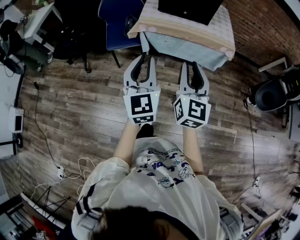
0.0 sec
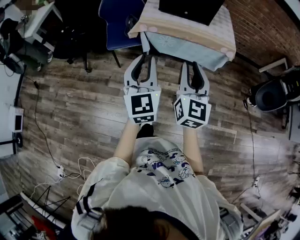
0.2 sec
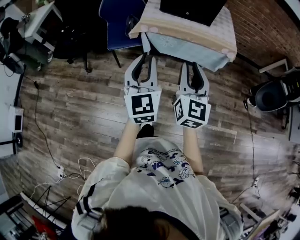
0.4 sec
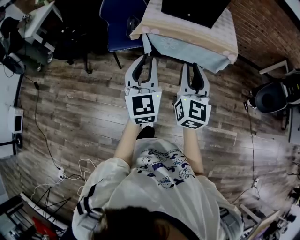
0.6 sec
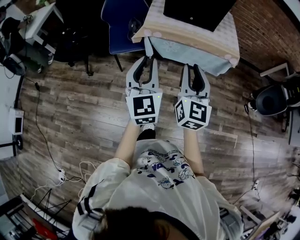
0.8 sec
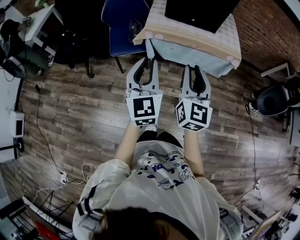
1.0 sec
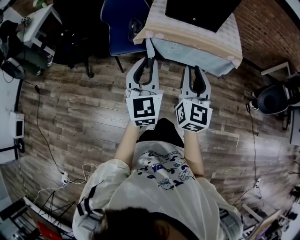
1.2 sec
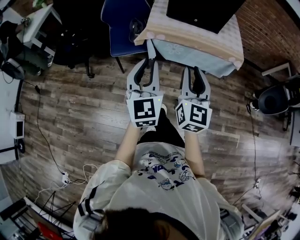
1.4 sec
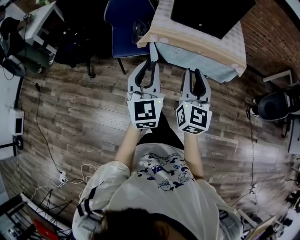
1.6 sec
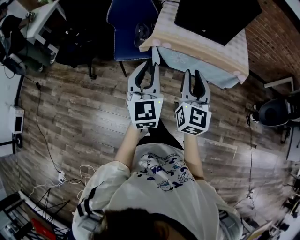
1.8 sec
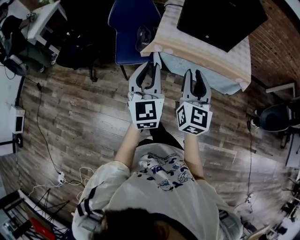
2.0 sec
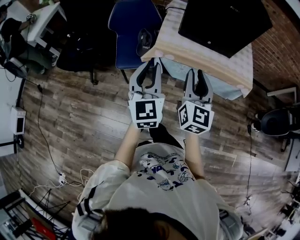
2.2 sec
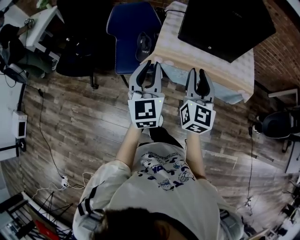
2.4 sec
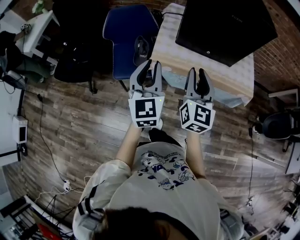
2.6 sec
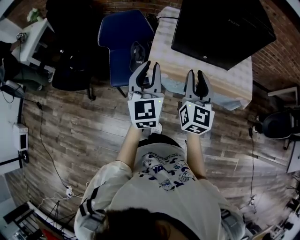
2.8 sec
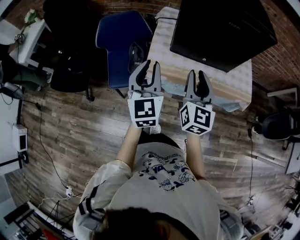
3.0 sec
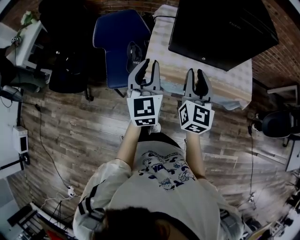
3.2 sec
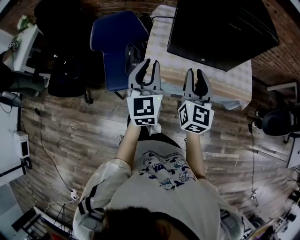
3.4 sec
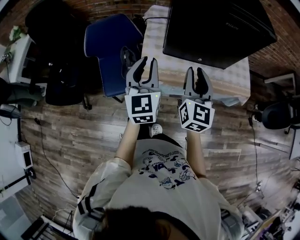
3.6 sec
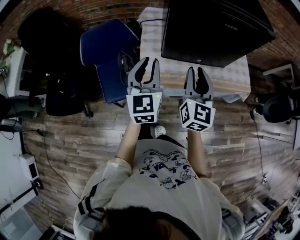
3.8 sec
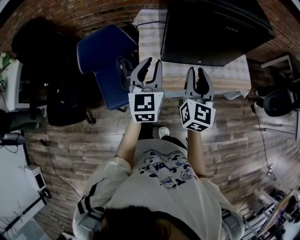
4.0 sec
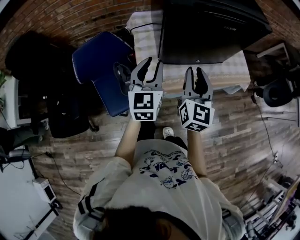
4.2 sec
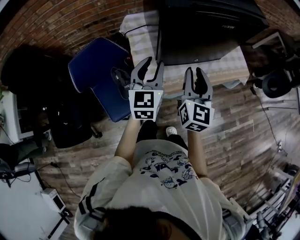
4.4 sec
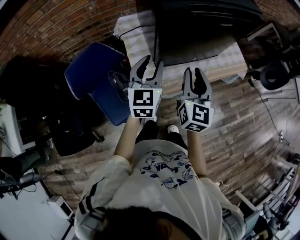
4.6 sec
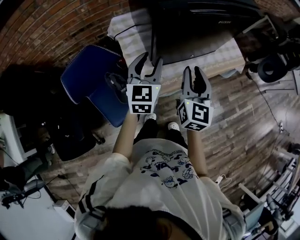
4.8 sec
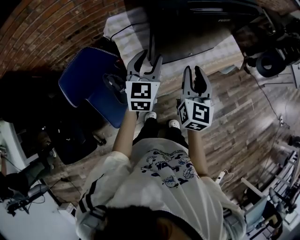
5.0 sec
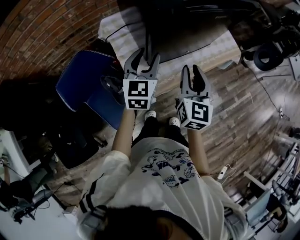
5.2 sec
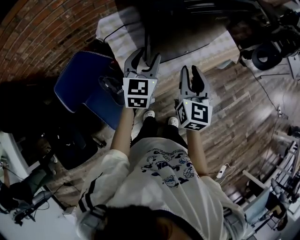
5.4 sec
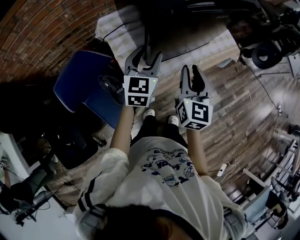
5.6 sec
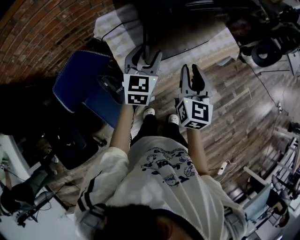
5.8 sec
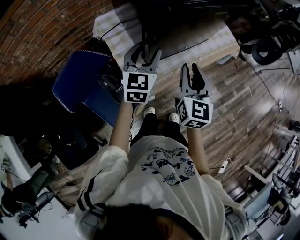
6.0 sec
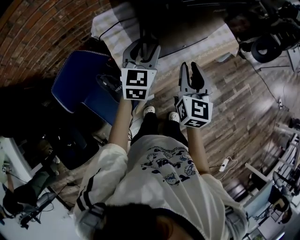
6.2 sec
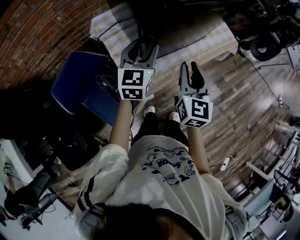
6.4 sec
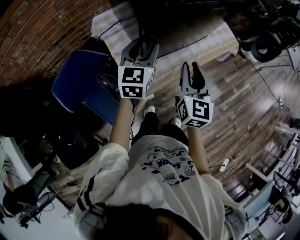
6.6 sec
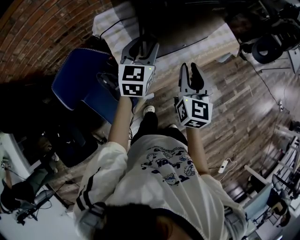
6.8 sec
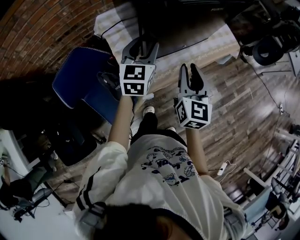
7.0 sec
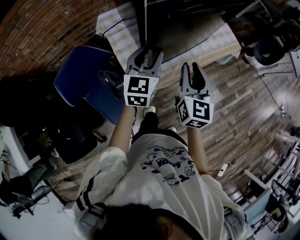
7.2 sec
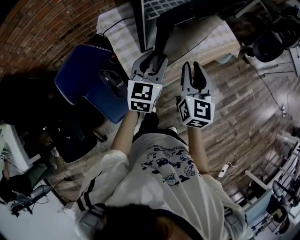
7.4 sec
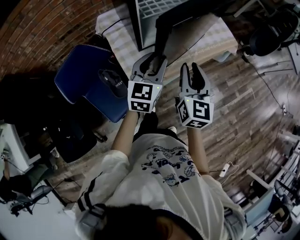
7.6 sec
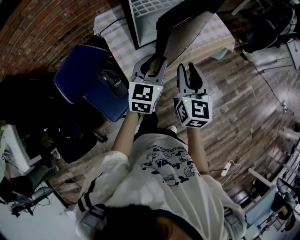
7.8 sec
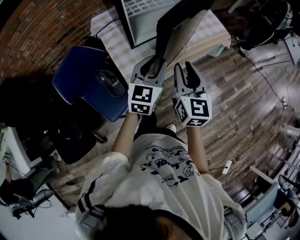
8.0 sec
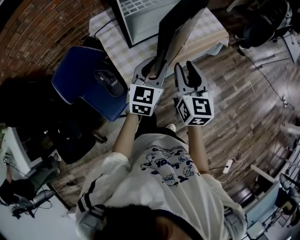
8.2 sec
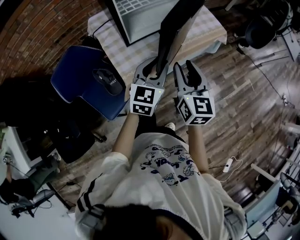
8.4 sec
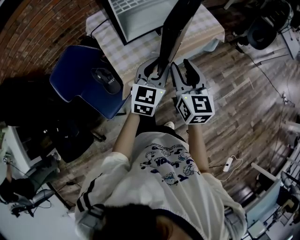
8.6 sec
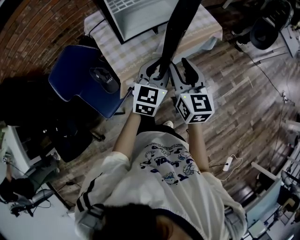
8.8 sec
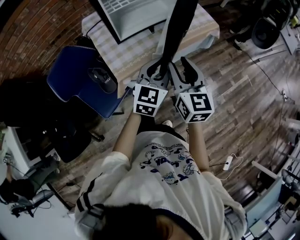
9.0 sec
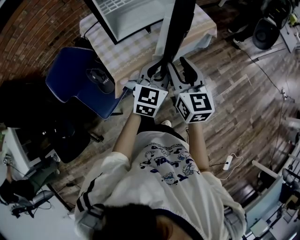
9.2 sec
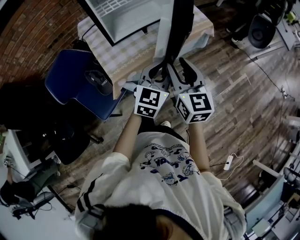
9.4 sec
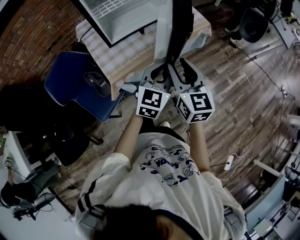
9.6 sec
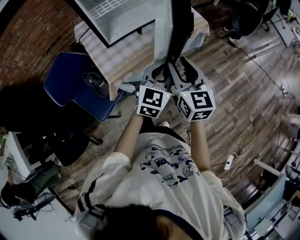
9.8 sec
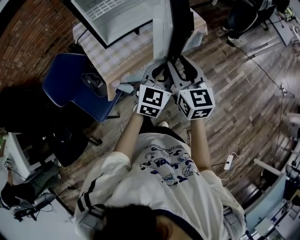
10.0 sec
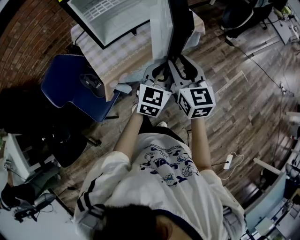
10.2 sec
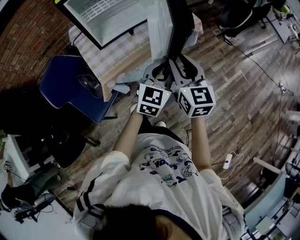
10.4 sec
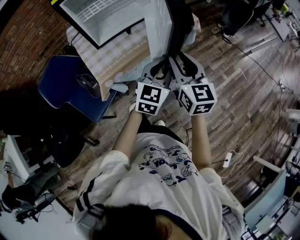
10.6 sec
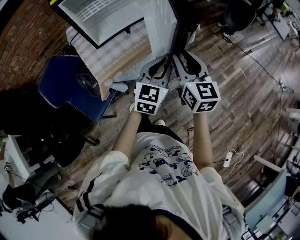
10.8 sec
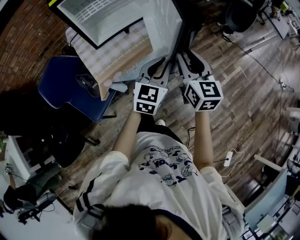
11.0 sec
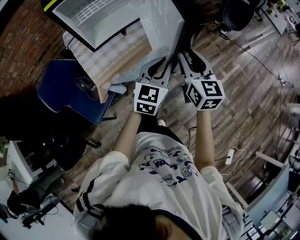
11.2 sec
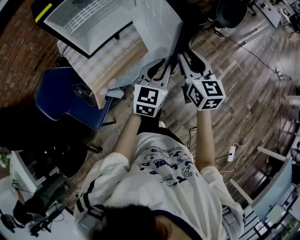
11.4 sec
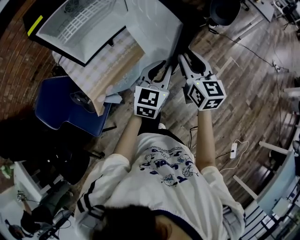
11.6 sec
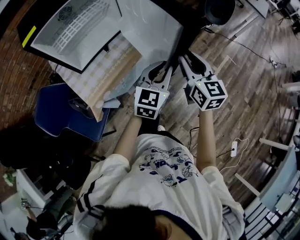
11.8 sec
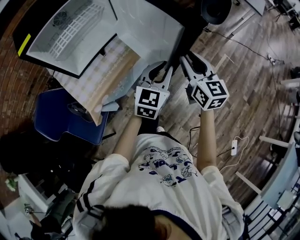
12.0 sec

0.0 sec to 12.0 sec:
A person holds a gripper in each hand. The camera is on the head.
0.0 sec to 1.6 sec: The two grippers go approximately 15 cm forward and to the left.
1.6 sec to 3.0 sec: The two grippers go roughly 30 cm forward.
3.0 sec to 4.4 sec: The left gripper ends up some 20 cm from where it was, and turns by some 30 degrees. The right gripper shifts by roughly 15 cm, and changes its angle by about 20 degrees.
4.4 sec to 6.0 sec: The left gripper moves forward, roughly 10 cm, and turns by roughly 20 degrees.
6.0 sec to 7.6 sec: The right gripper shifts by some 5 cm; the left gripper goes roughly 10 cm to the right and backward.
7.6 sec to 9.0 sec: The right gripper goes roughly 10 cm to the right and backward. The left gripper shifts some 20 cm to the right and backward.
9.0 sec to 10.4 sec: Both grippers travel together to the right, approximately 10 cm.
10.4 sec to 12.0 sec: Both grippers travel together to the right and forward, approximately 15 cm.

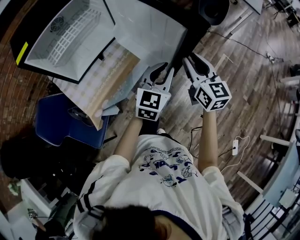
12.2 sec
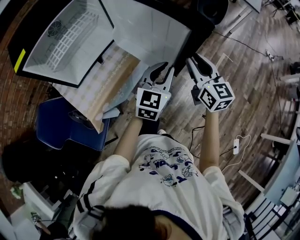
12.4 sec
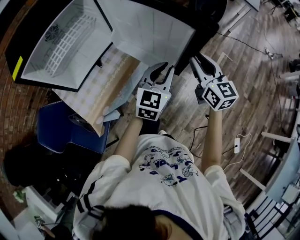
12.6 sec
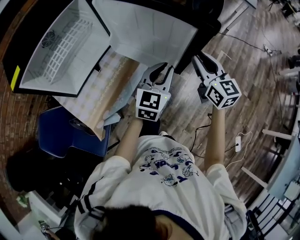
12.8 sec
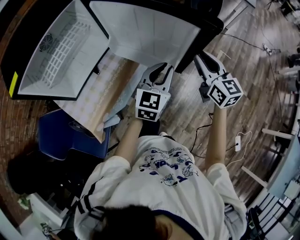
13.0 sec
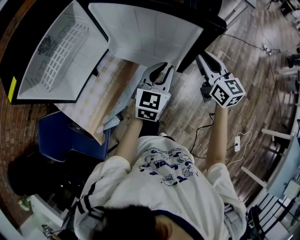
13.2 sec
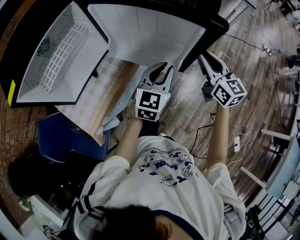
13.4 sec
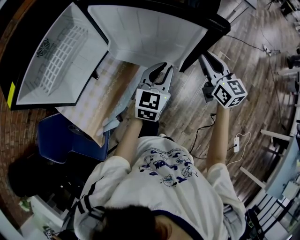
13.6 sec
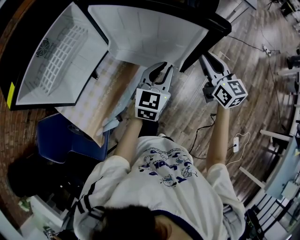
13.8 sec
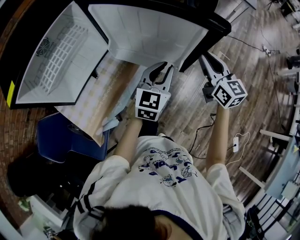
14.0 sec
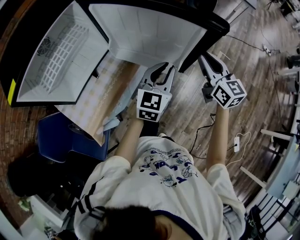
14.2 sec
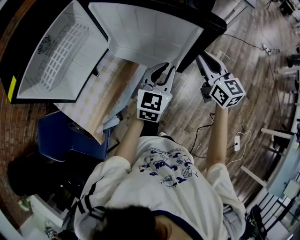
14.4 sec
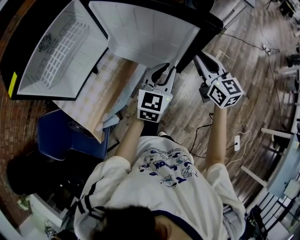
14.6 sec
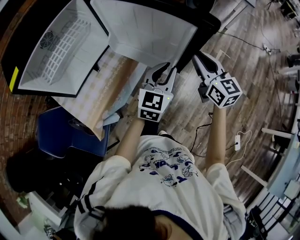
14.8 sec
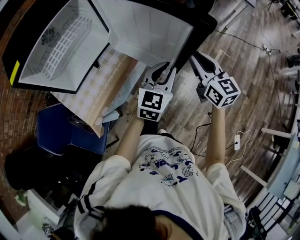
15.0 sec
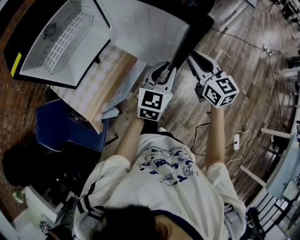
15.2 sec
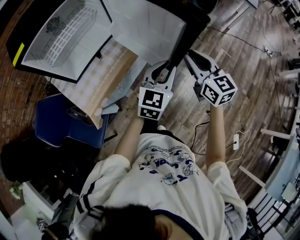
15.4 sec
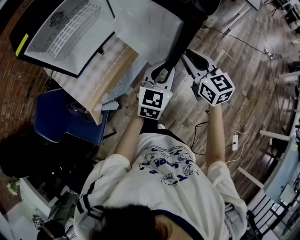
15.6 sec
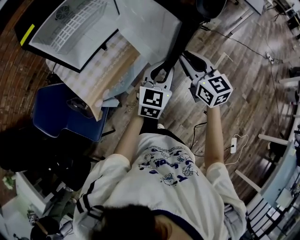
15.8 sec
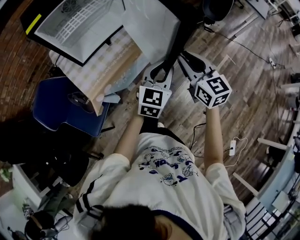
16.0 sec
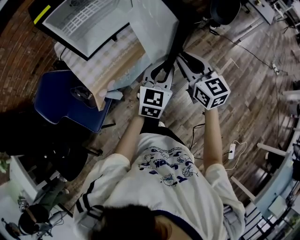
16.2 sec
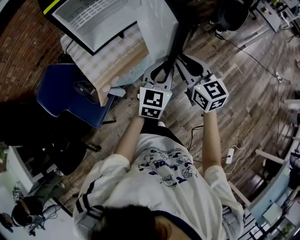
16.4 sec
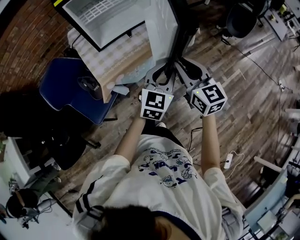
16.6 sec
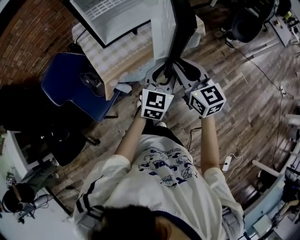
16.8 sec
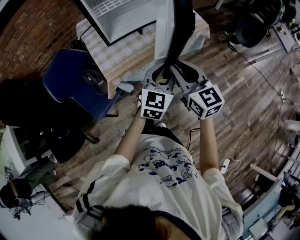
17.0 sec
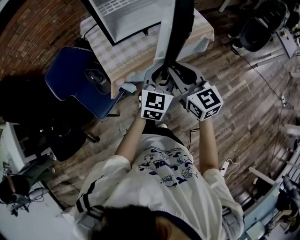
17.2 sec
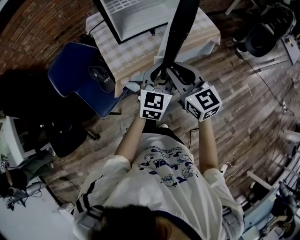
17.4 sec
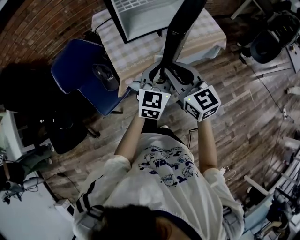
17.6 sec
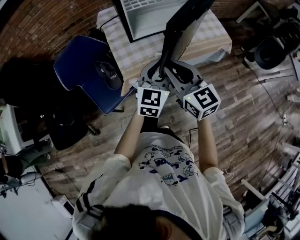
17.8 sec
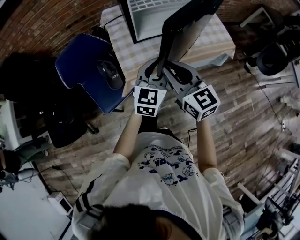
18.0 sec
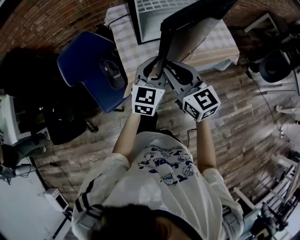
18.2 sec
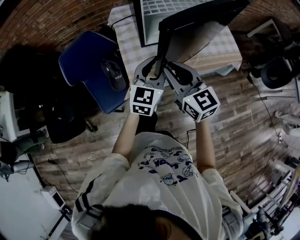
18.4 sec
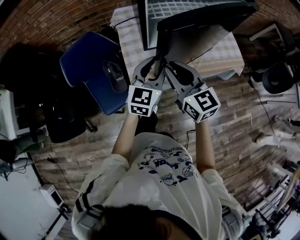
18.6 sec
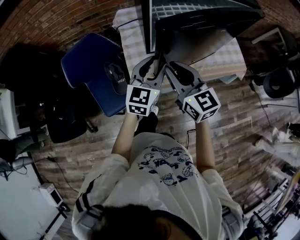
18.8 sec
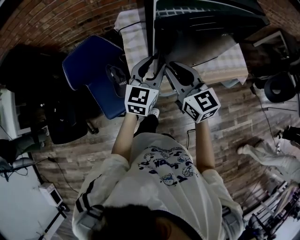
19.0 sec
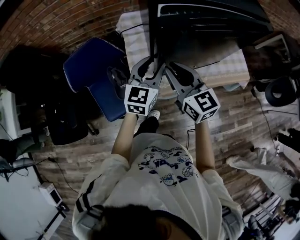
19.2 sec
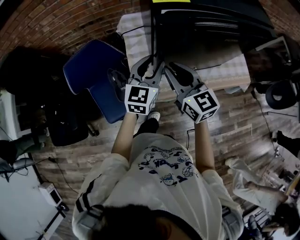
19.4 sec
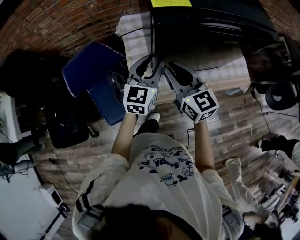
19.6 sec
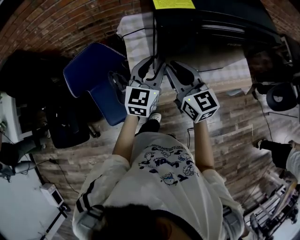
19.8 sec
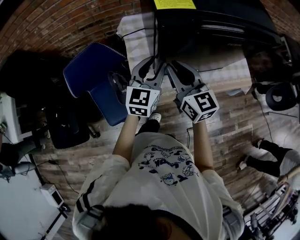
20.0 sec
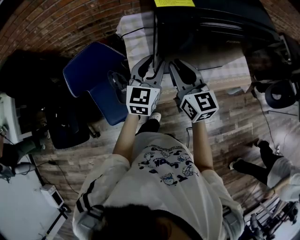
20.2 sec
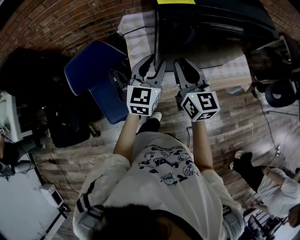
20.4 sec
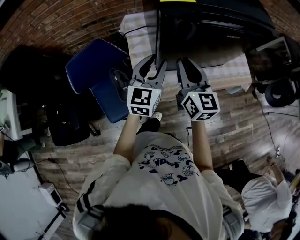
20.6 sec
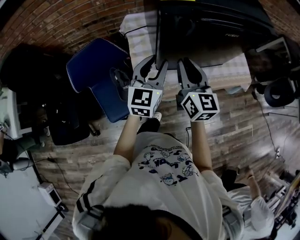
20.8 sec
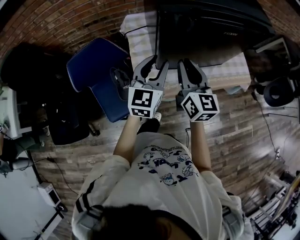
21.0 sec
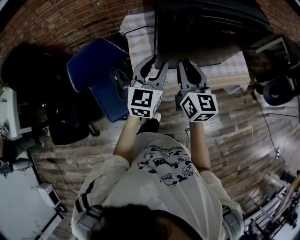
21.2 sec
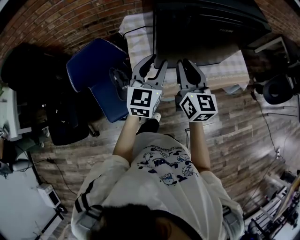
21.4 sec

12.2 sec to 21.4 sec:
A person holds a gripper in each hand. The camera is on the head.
12.2 sec to 13.8 sec: The right gripper shifts approximately 15 cm forward and to the right; the left gripper heads forward, covering roughly 10 cm.
13.8 sec to 15.2 sec: Both grippers move backward, about 10 cm.
15.2 sec to 16.8 sec: Both grippers travel together to the left and backward, some 20 cm. The right gripper turns by approximately 20 degrees; the left gripper rotates roughly 20 degrees.
16.8 sec to 18.4 sec: Both grippers move to the left and forward, approximately 25 cm. The right gripper turns by approximately 20 degrees; the left gripper changes its angle by about 20 degrees.
18.4 sec to 19.8 sec: Both grippers move forward, some 15 cm.
19.8 sec to 21.4 sec: The right gripper shifts by some 5 cm. Meanwhile the left gripper travels backward by some 5 cm.

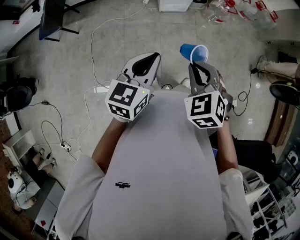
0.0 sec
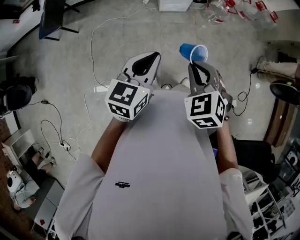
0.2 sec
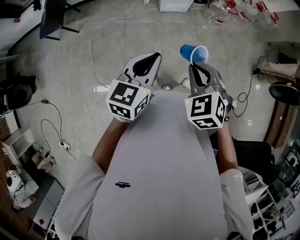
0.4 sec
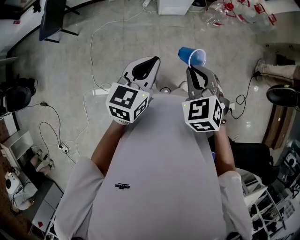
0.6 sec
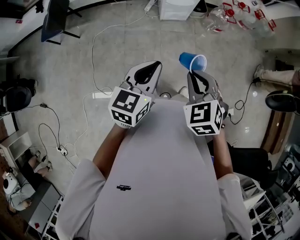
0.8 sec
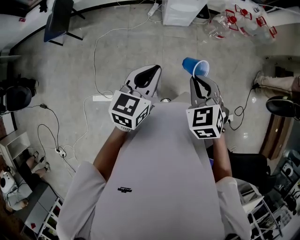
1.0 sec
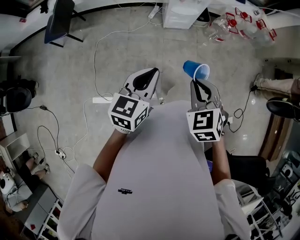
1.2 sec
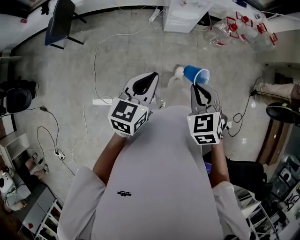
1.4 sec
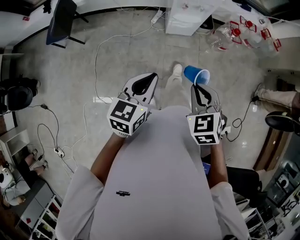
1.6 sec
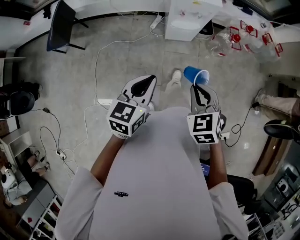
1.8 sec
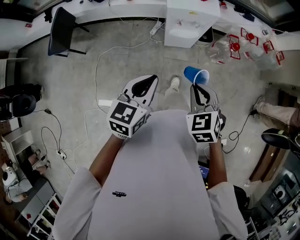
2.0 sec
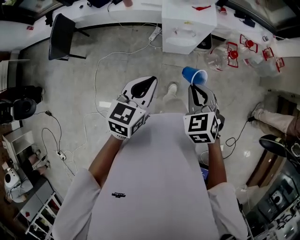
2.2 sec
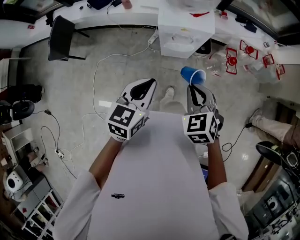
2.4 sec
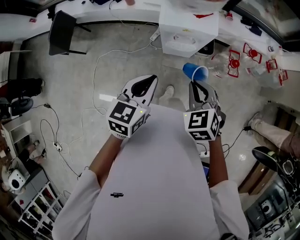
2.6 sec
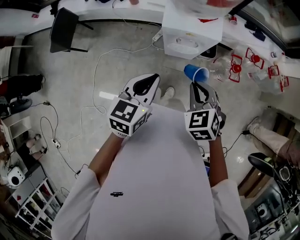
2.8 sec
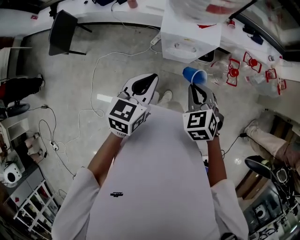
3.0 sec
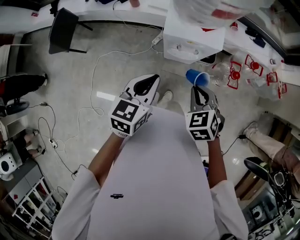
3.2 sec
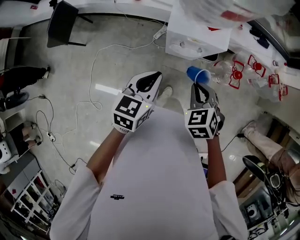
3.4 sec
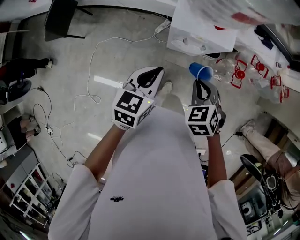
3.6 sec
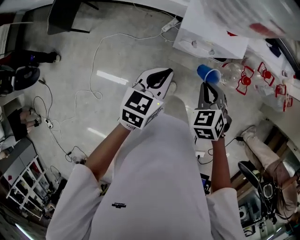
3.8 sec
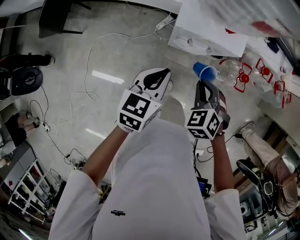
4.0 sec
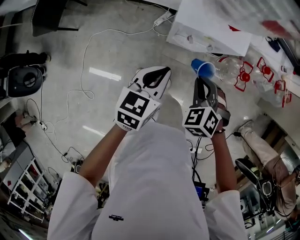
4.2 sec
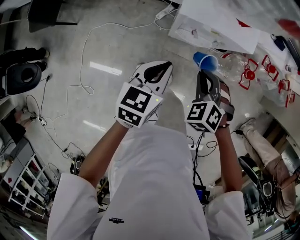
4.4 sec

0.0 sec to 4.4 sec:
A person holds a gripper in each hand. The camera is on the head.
0.0 sec to 1.4 sec: The grippers stay close to where they were, moving slightly.
1.4 sec to 3.0 sec: The two grippers go roughly 35 cm forward.
3.0 sec to 4.4 sec: The right gripper is displaced downward and forward by approximately 15 cm, and changes its angle by approximately 20 degrees, while the left gripper shifts about 15 cm downward.
